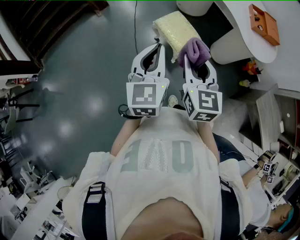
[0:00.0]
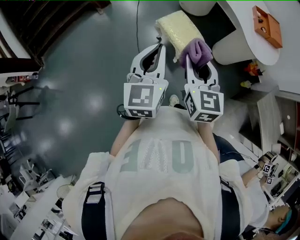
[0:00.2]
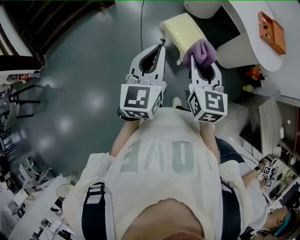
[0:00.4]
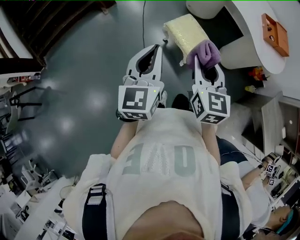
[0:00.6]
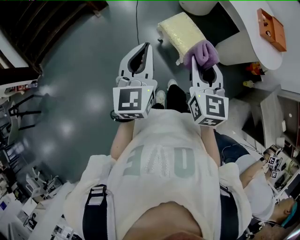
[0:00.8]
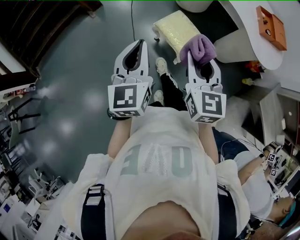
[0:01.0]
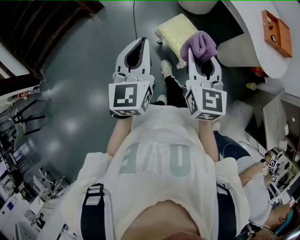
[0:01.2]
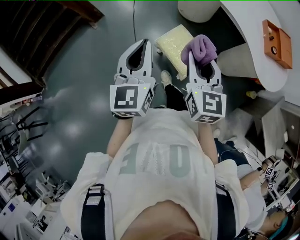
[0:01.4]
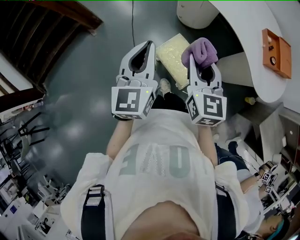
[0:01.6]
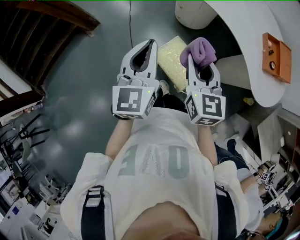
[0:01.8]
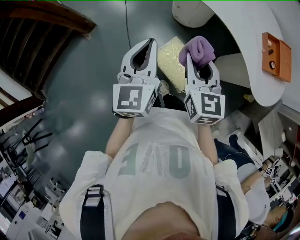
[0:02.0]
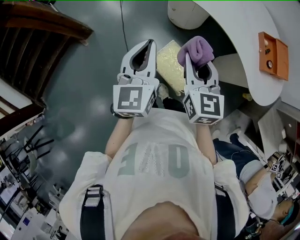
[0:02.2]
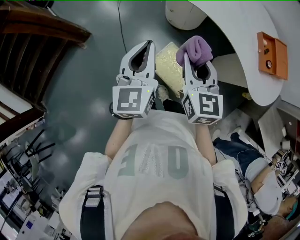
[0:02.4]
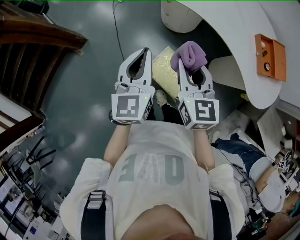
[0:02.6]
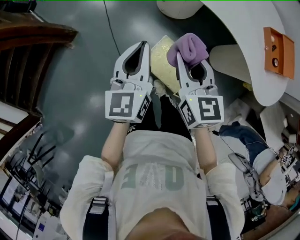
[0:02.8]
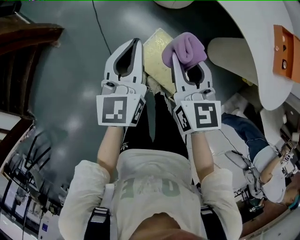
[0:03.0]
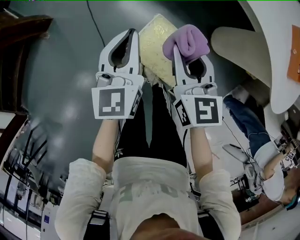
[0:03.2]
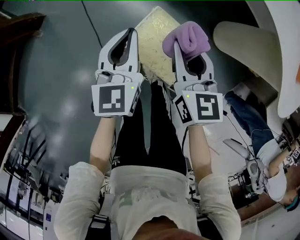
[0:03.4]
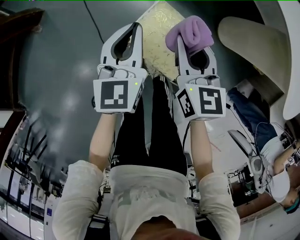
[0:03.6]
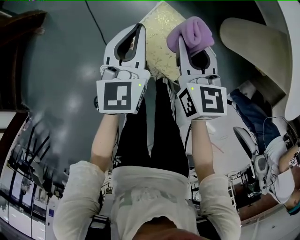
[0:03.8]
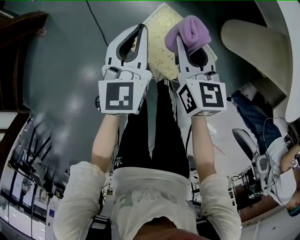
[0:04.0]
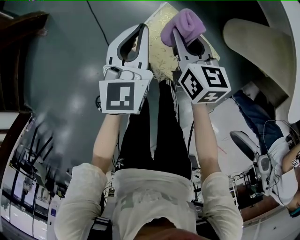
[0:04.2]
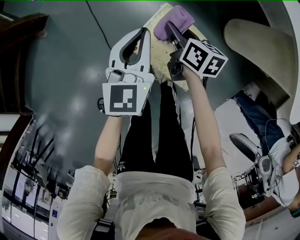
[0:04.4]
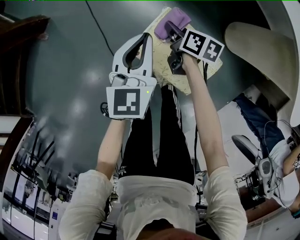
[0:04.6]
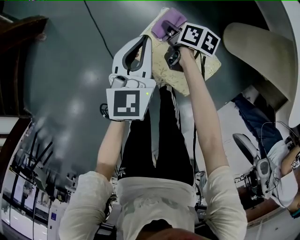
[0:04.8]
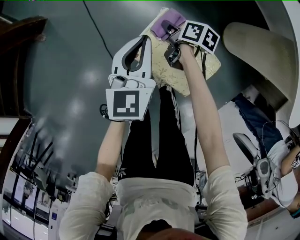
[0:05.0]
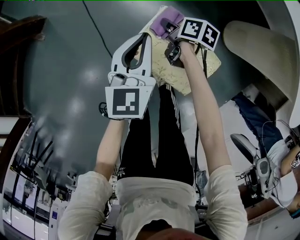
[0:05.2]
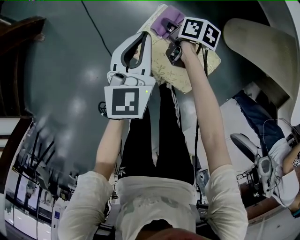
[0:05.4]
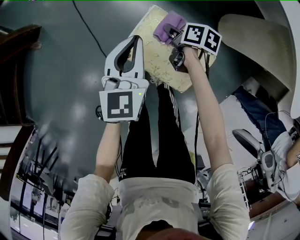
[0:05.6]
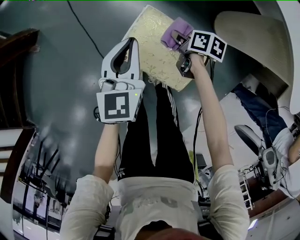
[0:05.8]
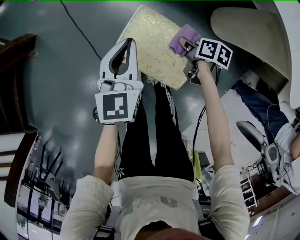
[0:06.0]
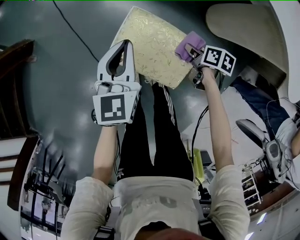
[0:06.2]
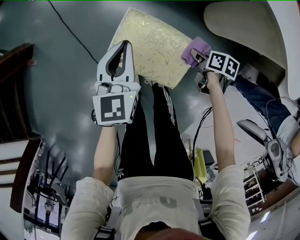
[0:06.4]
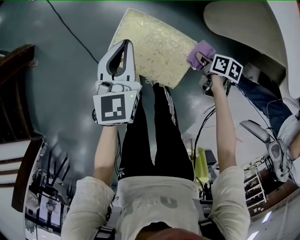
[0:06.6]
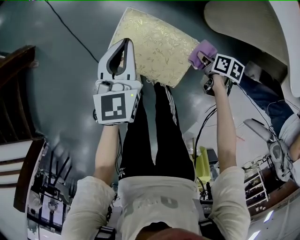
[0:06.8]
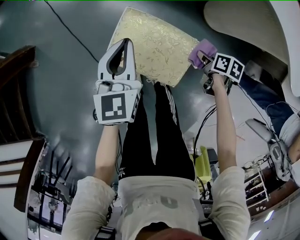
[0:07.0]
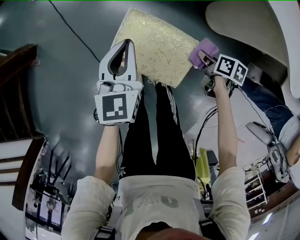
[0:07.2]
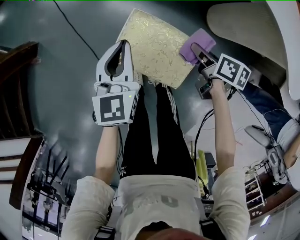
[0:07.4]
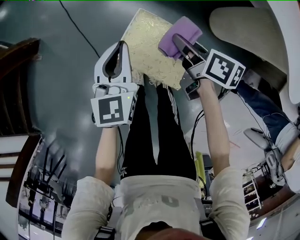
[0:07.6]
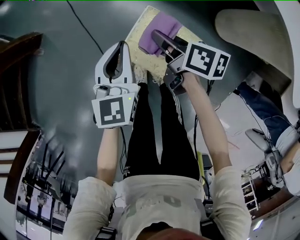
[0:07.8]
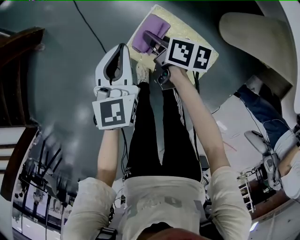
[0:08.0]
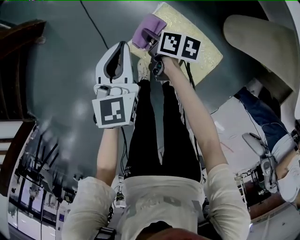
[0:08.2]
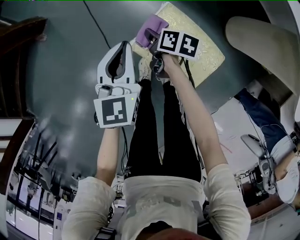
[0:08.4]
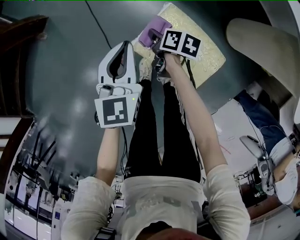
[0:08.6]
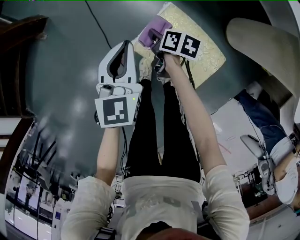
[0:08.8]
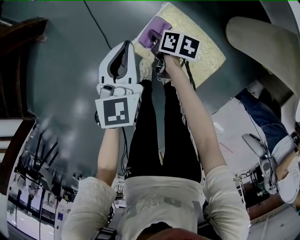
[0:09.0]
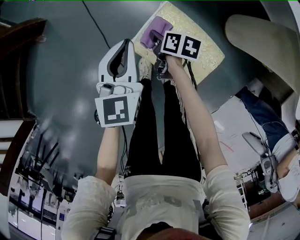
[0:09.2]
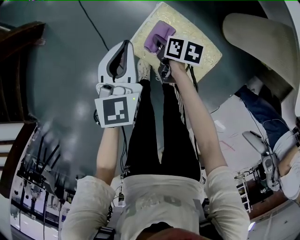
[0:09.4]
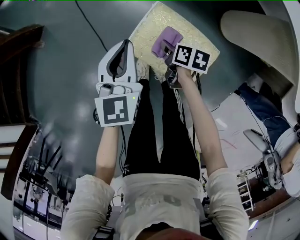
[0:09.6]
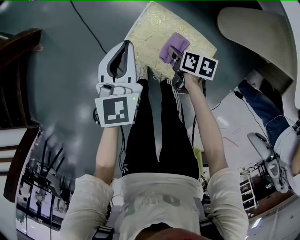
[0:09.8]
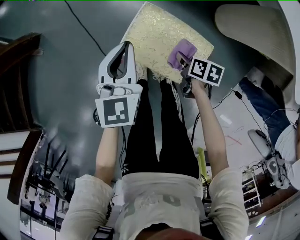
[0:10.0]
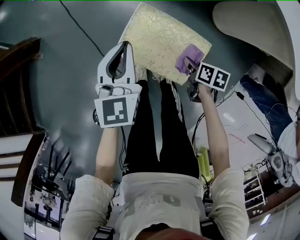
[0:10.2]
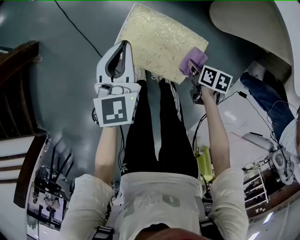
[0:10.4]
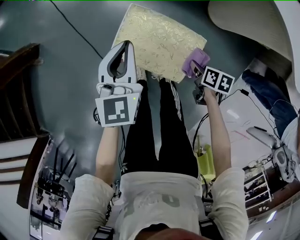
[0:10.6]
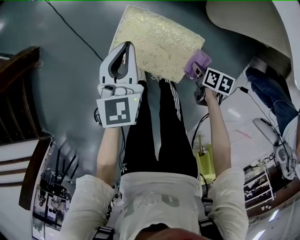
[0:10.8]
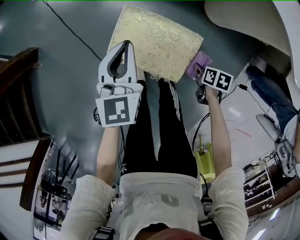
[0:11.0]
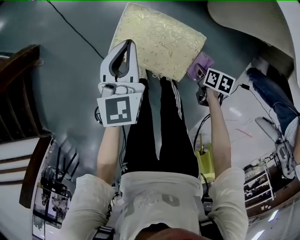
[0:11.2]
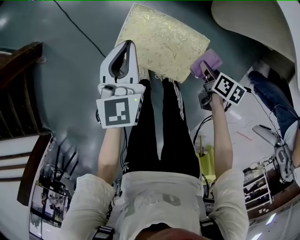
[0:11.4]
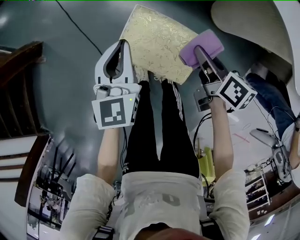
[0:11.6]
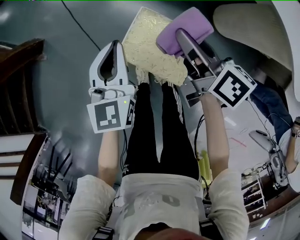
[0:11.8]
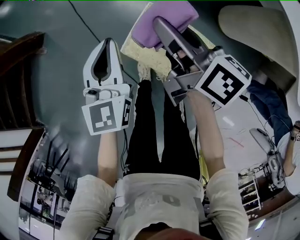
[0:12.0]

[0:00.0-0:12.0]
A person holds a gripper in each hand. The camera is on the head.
0:00.0 to 0:01.6: The grippers both shift forward by some 30 cm.
0:01.6 to 0:03.0: The grippers both shift forward and downward by some 25 cm.
0:03.0 to 0:04.4: The right gripper shifts roughly 30 cm downward, and turns by some 40 degrees. The left gripper travels downward by some 20 cm.
0:04.4 to 0:06.0: The right gripper shifts about 20 cm to the right, backward and downward, and swivels roughly 30 degrees.
0:06.0 to 0:07.6: The right gripper heads upward, covering approximately 15 cm, and turns by roughly 20 degrees.
0:07.6 to 0:09.0: The right gripper travels downward and to the left by roughly 20 cm, while the left gripper travels to the left by approximately 5 cm.
0:09.0 to 0:10.4: The right gripper goes approximately 25 cm backward and to the right. The left gripper heads to the right, covering about 10 cm.
0:10.4 to 0:12.0: The right gripper is displaced upward, forward and to the left by approximately 35 cm, and tilts its fingers roughly 50 degrees upward. The left gripper heads to the left, covering some 5 cm.

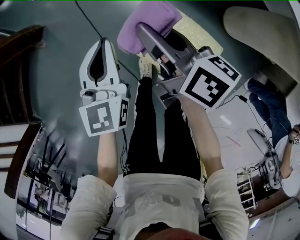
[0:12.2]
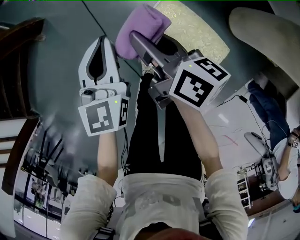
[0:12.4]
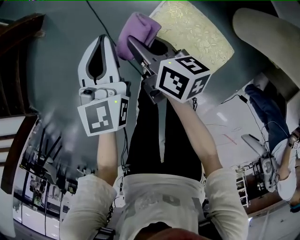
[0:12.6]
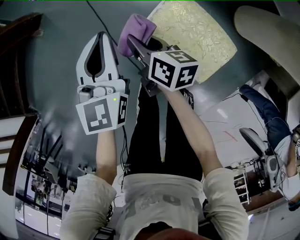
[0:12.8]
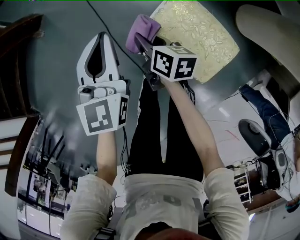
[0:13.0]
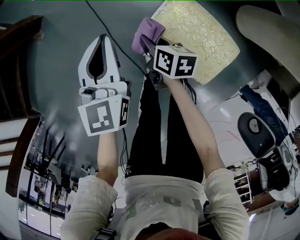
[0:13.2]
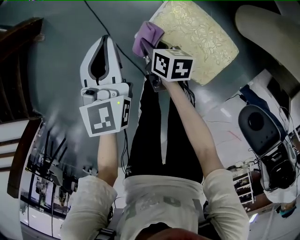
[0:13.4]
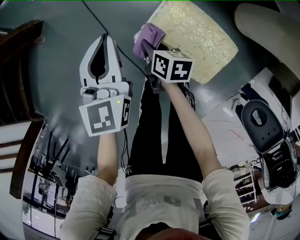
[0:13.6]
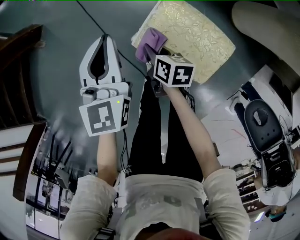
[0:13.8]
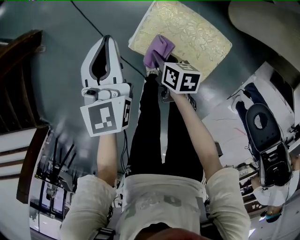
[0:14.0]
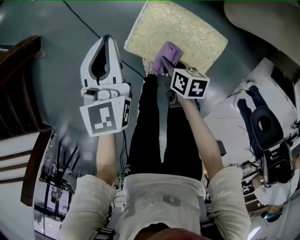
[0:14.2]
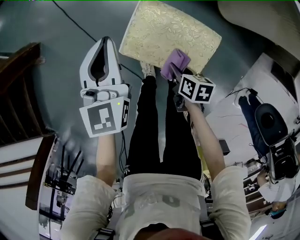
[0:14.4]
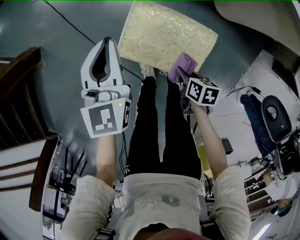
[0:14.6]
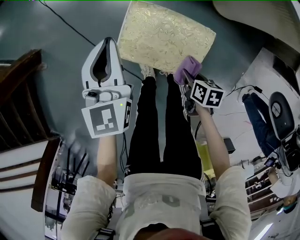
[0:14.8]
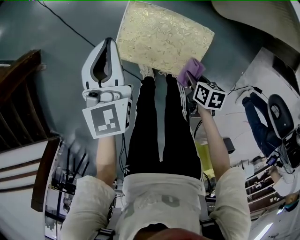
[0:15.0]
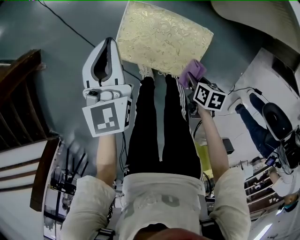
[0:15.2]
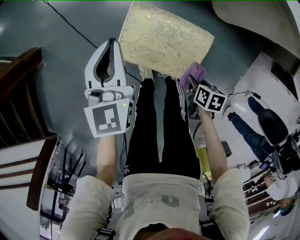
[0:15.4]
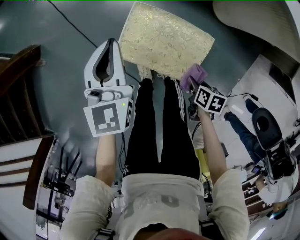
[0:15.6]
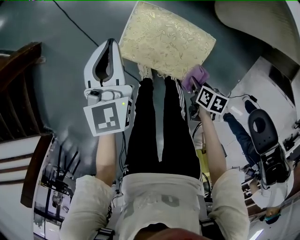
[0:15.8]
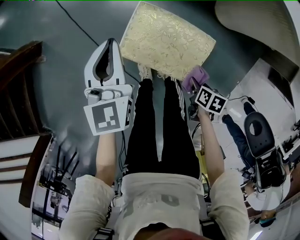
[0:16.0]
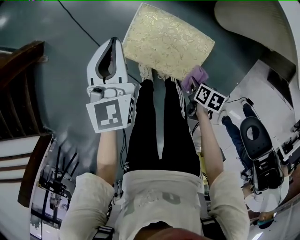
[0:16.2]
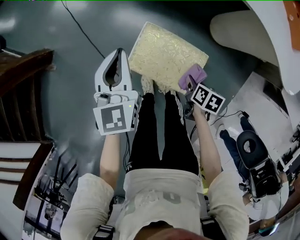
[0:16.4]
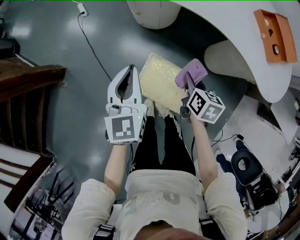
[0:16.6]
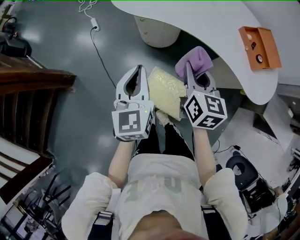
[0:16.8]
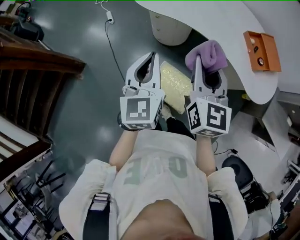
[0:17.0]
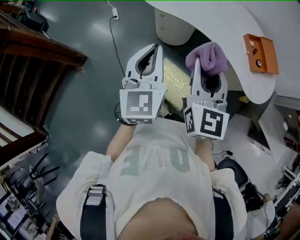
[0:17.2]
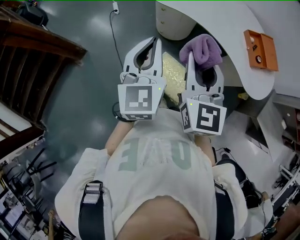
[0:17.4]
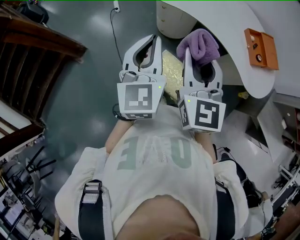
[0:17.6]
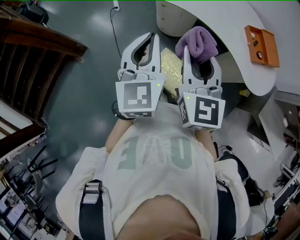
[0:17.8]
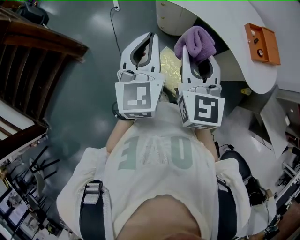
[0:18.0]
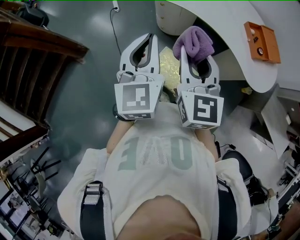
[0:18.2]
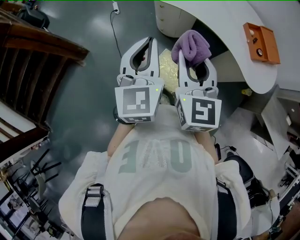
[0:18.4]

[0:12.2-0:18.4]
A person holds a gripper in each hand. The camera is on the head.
0:12.2 to 0:13.8: The left gripper moves approximately 5 cm. The right gripper goes roughly 25 cm downward and to the left, and angles its fingers downward, by some 30 degrees.
0:13.8 to 0:15.4: The left gripper travels to the right by some 15 cm. Meanwhile the right gripper moves to the right and backward, about 30 cm, and changes its angle by roughly 20 degrees.
0:15.4 to 0:16.8: The right gripper travels upward and forward by approximately 50 cm, and tips its fingers upward by approximately 50 degrees; the left gripper travels upward by about 30 cm.
0:16.8 to 0:18.4: The left gripper goes roughly 15 cm upward and backward. Meanwhile the right gripper heads upward, backward and to the left, covering approximately 20 cm, and swivels about 20 degrees.

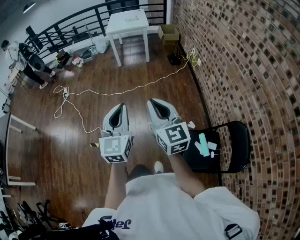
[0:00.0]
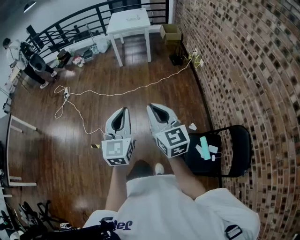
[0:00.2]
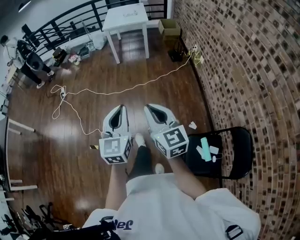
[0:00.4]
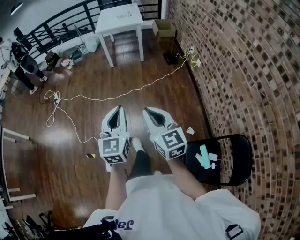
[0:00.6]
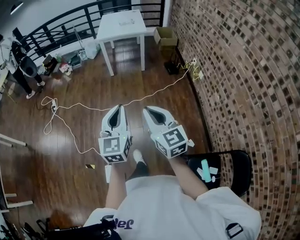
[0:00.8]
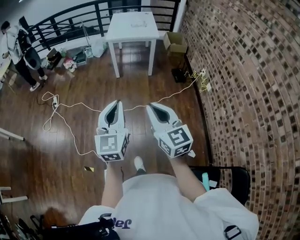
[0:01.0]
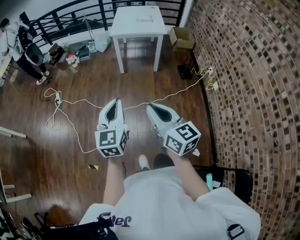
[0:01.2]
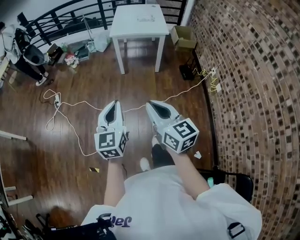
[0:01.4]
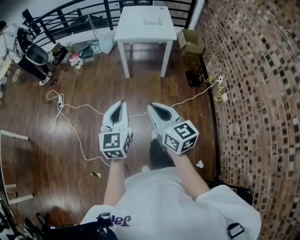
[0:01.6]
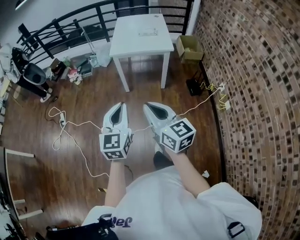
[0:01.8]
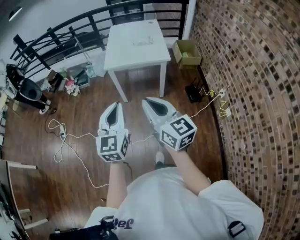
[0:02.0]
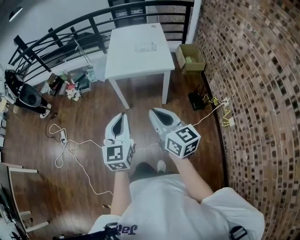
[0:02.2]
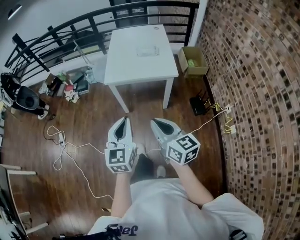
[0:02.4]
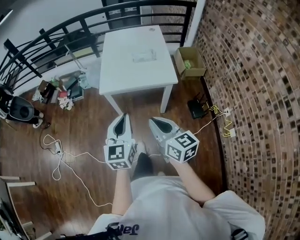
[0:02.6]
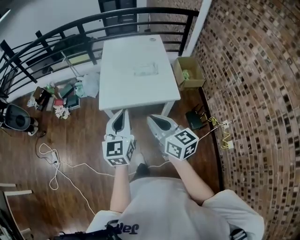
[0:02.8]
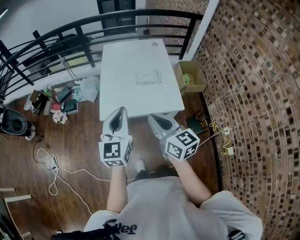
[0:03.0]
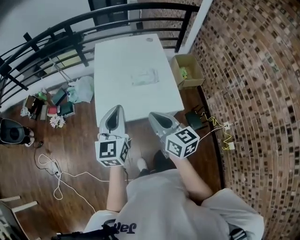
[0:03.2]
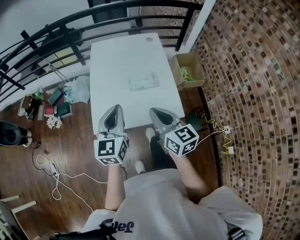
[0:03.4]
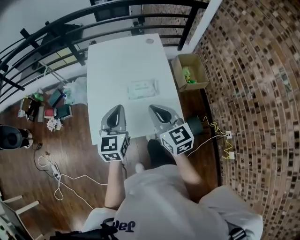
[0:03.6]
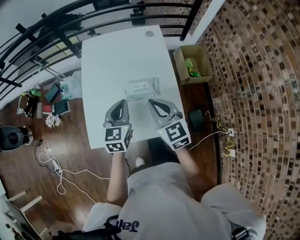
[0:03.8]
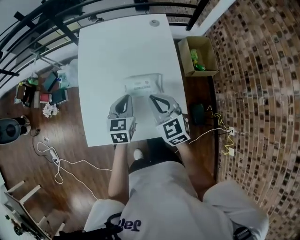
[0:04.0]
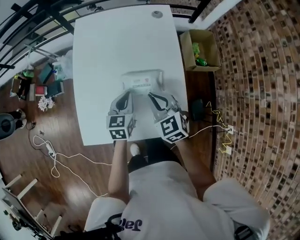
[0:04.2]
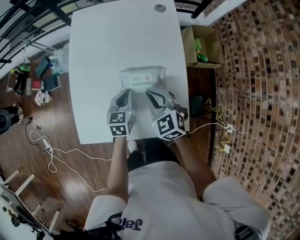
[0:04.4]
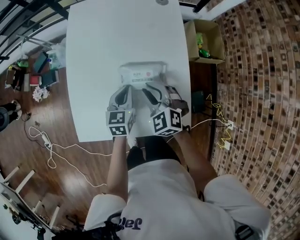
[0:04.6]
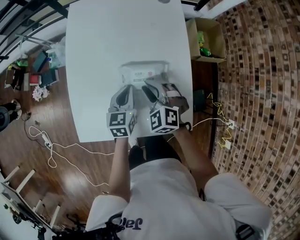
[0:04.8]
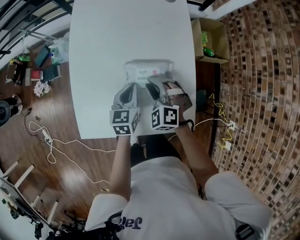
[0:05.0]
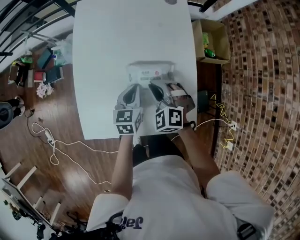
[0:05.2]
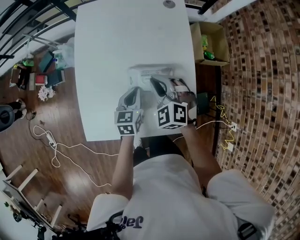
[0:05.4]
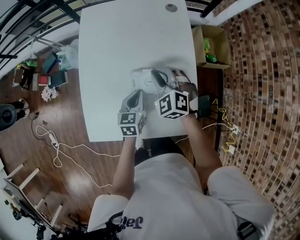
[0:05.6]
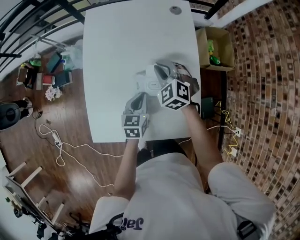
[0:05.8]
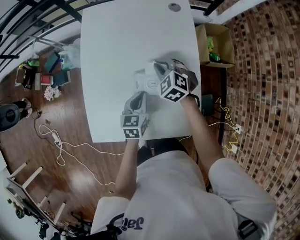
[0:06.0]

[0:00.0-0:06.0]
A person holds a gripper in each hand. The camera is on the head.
0:00.0 to 0:01.6: The pair of grippers is taken forward, some 60 cm. The right gripper turns by approximately 20 degrees.
0:01.6 to 0:03.0: The two grippers travel together, forward, some 70 cm.
0:03.0 to 0:04.4: Both grippers move forward and downward, approximately 50 cm. The right gripper turns by roughly 50 degrees. The left gripper points its fingers roughly 30 degrees further downward.
0:04.4 to 0:06.0: The right gripper is displaced forward by roughly 15 cm.
